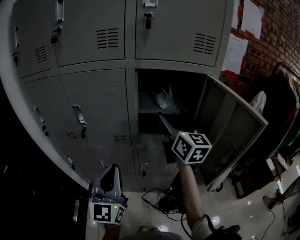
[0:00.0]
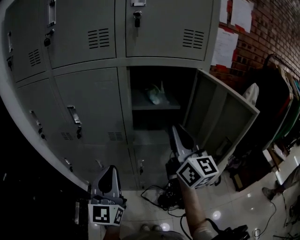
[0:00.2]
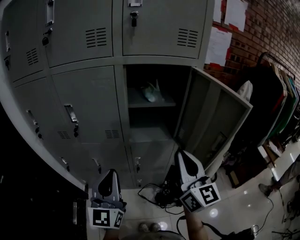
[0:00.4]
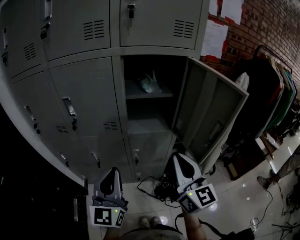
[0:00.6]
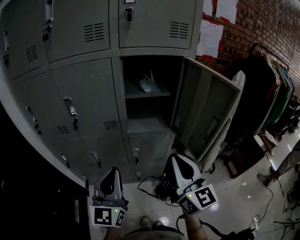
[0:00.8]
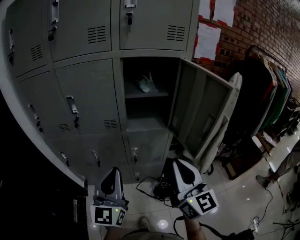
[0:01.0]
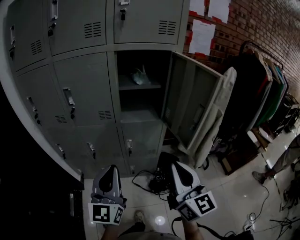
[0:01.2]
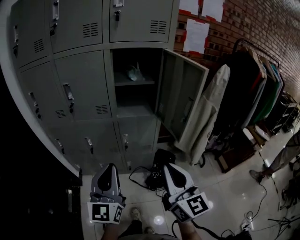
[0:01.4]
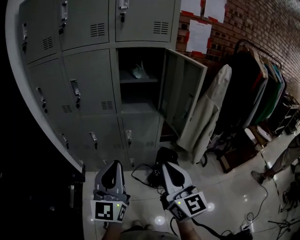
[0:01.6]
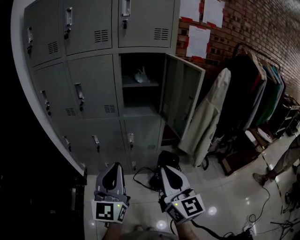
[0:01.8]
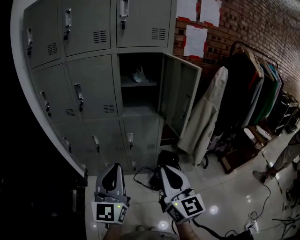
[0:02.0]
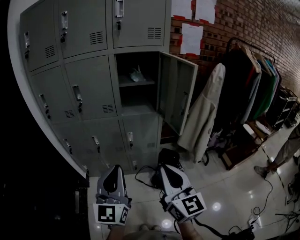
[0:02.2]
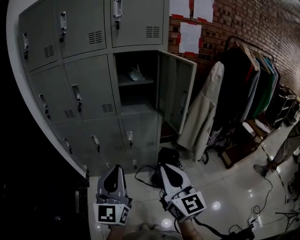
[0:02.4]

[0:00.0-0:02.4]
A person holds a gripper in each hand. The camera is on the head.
0.0 to 1.2 s: The left gripper travels backward by about 15 cm; the right gripper heads backward, covering approximately 35 cm, and closes its fingers.
1.2 to 2.4 s: Both grippers travel together backward, about 10 cm.

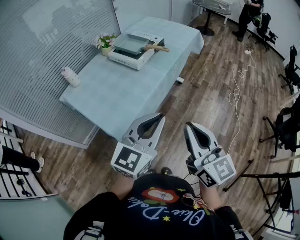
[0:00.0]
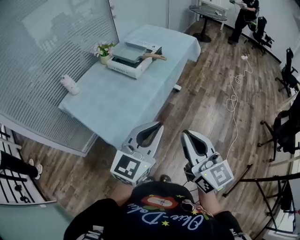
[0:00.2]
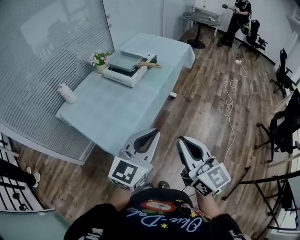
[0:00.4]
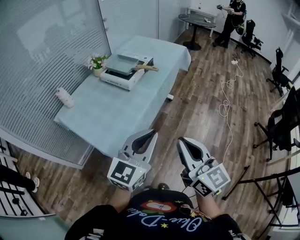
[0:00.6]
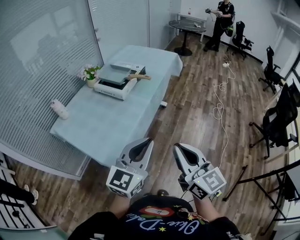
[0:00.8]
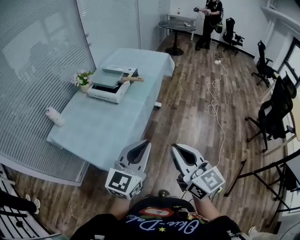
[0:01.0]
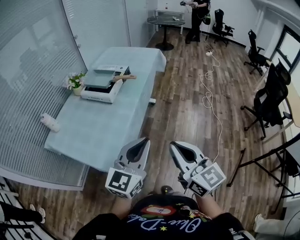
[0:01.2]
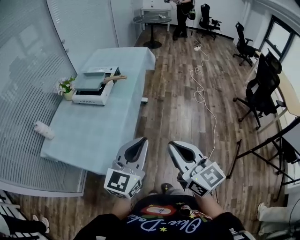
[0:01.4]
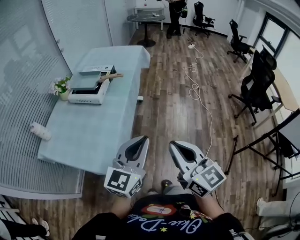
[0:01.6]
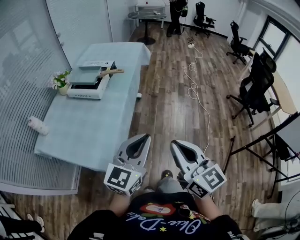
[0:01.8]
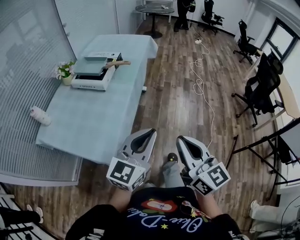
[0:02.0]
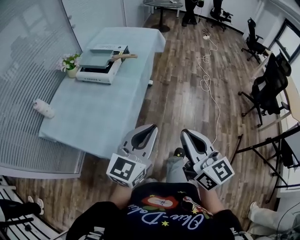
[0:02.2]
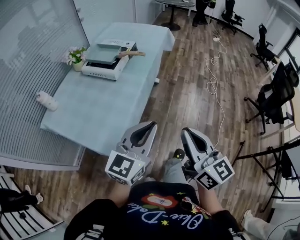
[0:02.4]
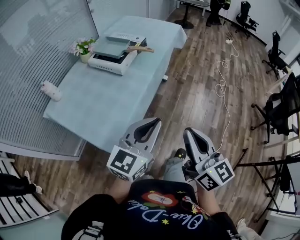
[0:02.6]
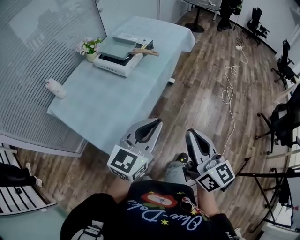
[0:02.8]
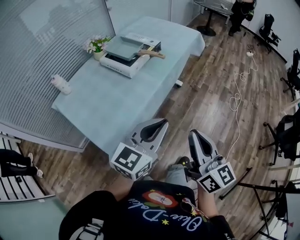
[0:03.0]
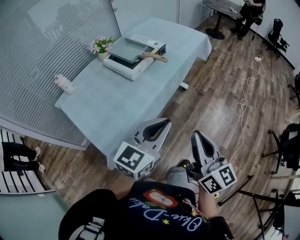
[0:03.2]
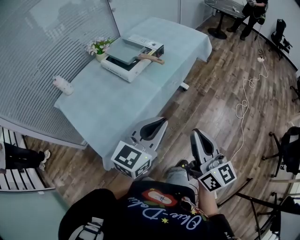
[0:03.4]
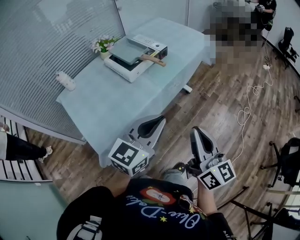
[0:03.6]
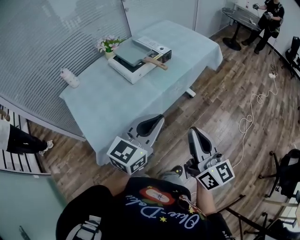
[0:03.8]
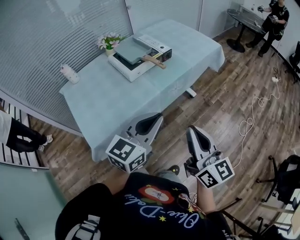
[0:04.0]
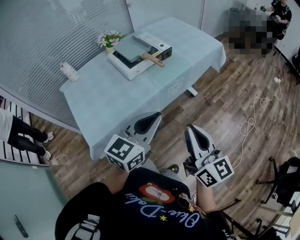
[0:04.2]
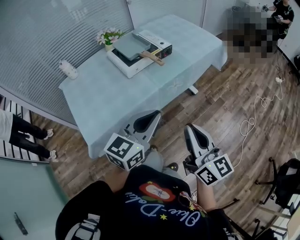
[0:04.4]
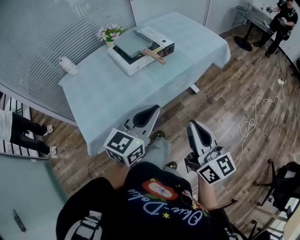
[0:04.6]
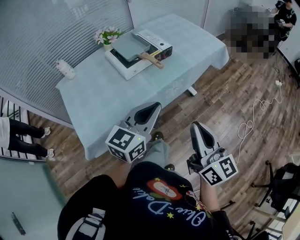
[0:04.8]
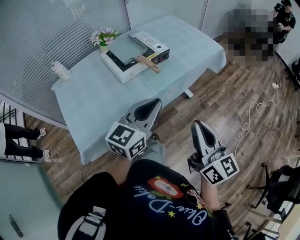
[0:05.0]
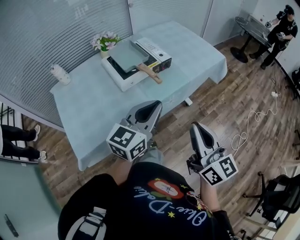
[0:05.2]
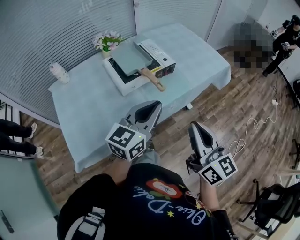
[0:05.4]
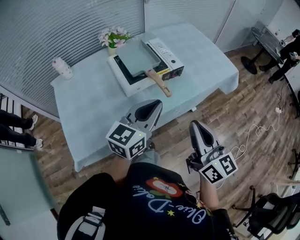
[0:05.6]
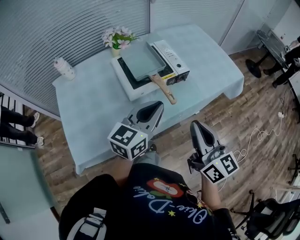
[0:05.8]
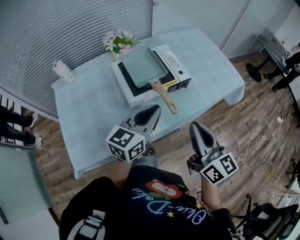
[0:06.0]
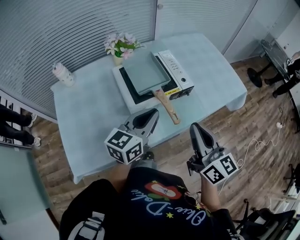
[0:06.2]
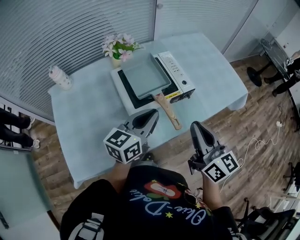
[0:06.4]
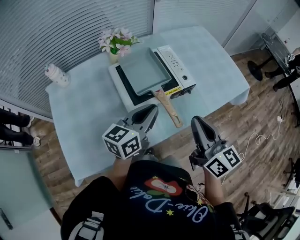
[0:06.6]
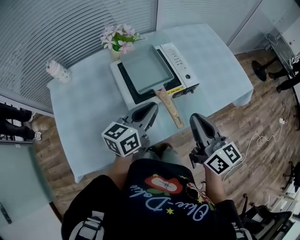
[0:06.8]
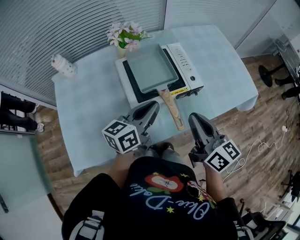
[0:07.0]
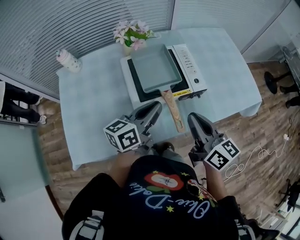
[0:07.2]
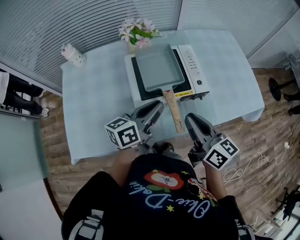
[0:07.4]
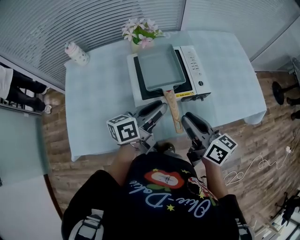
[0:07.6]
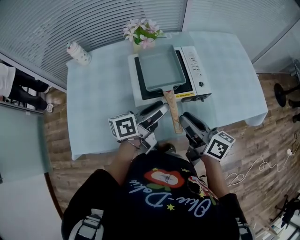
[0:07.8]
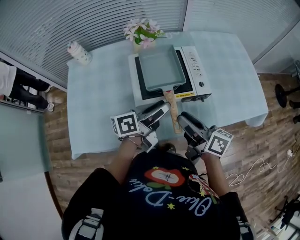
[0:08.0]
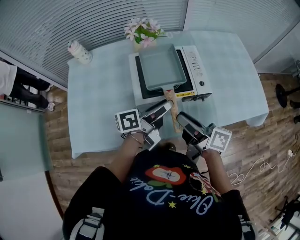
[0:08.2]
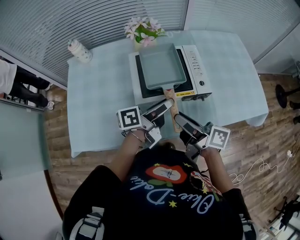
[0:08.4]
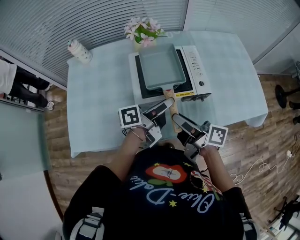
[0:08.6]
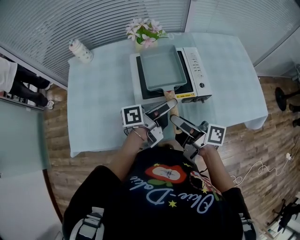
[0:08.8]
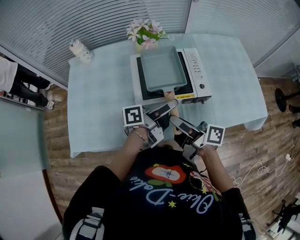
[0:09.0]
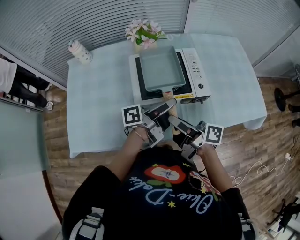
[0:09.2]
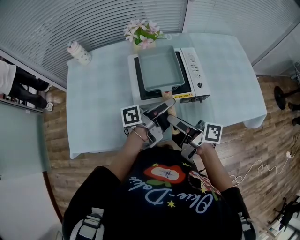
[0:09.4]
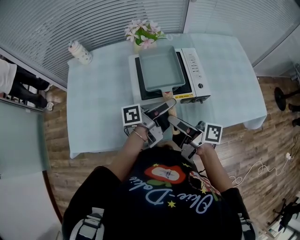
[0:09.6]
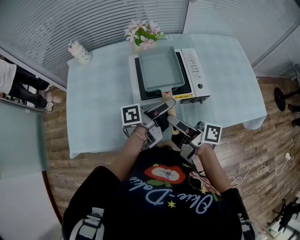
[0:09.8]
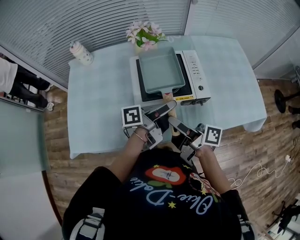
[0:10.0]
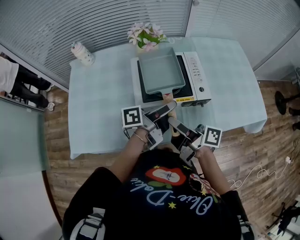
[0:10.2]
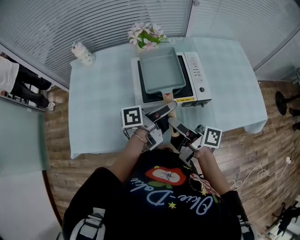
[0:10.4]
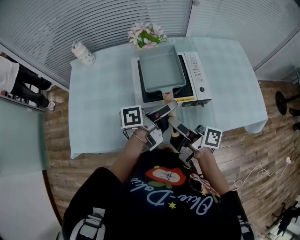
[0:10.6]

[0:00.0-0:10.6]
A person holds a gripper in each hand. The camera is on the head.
0.0 to 1.6 s: The grippers make only small movements.
1.6 to 3.0 s: The grippers both shift forward by about 10 cm. The right gripper changes its angle by some 20 degrees.
3.0 to 4.6 s: The two grippers go approximately 15 cm forward and to the right. The right gripper changes its angle by about 20 degrees; the left gripper turns by about 20 degrees.
4.6 to 6.0 s: Both grippers travel together forward, about 25 cm.
6.0 to 7.6 s: The two grippers go approximately 10 cm forward and downward. The left gripper swivels roughly 40 degrees, and opens up; the right gripper rotates some 30 degrees, and opens up.
7.6 to 9.0 s: The left gripper rotates about 30 degrees, and opens its fingers. The right gripper moves approximately 5 cm, and swivels approximately 40 degrees.
9.0 to 10.6 s: The left gripper closes up.

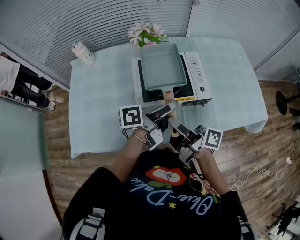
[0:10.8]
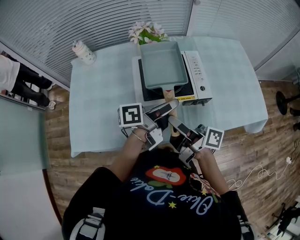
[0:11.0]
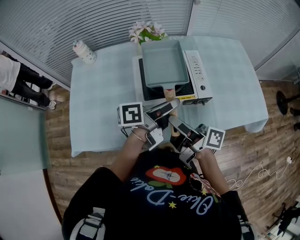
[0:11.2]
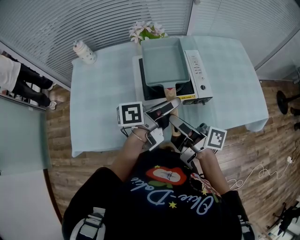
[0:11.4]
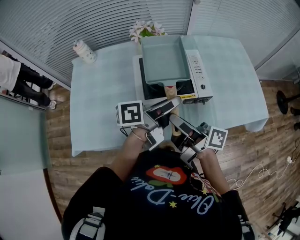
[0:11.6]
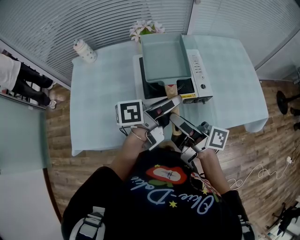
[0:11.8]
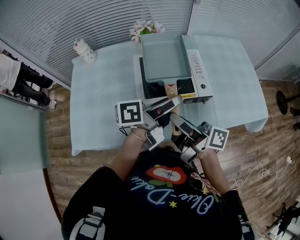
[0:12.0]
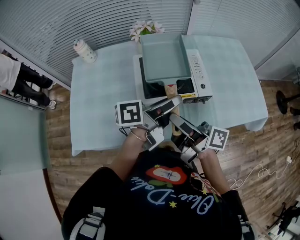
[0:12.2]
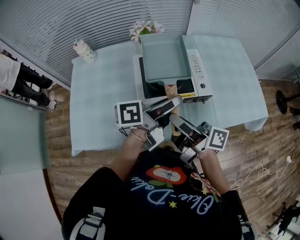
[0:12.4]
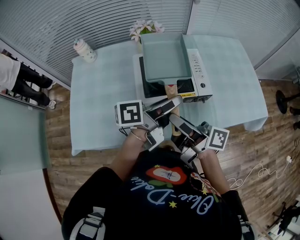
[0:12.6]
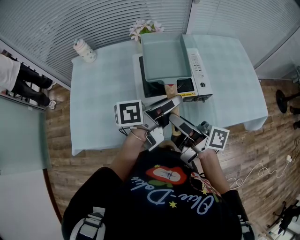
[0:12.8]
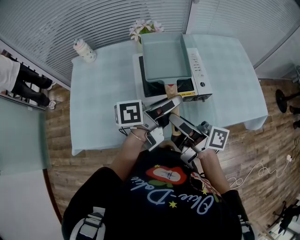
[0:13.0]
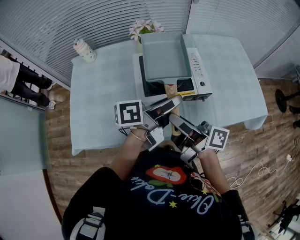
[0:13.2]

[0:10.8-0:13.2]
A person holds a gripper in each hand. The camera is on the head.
10.8 to 12.0 s: There are only small adjustments of the grippers.
12.0 to 13.2 s: Both grippers stay about where they are.

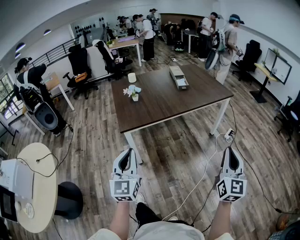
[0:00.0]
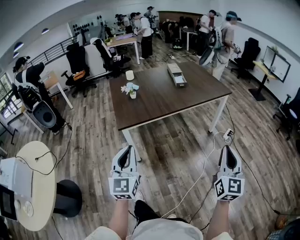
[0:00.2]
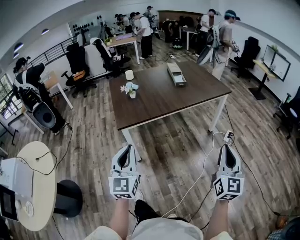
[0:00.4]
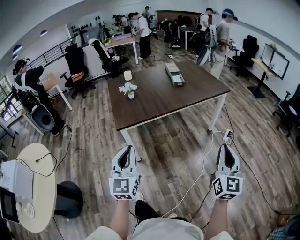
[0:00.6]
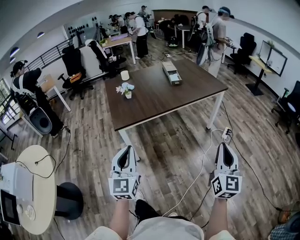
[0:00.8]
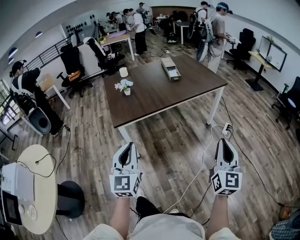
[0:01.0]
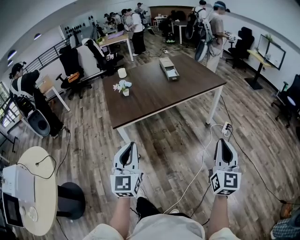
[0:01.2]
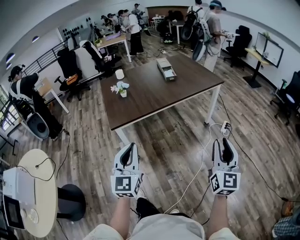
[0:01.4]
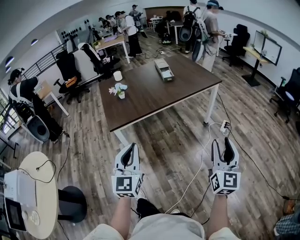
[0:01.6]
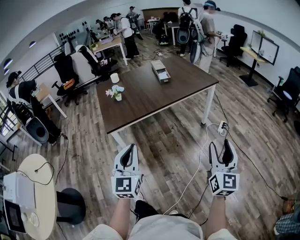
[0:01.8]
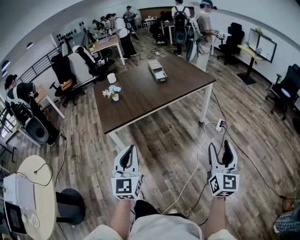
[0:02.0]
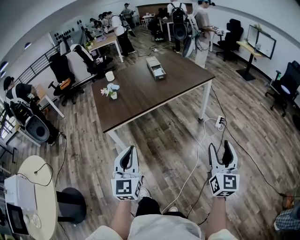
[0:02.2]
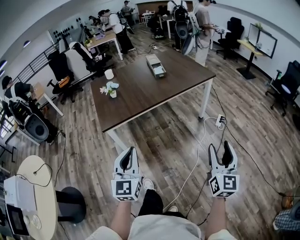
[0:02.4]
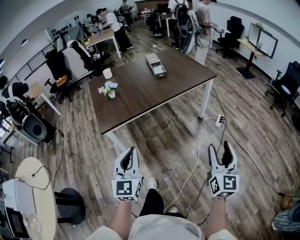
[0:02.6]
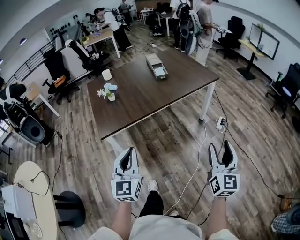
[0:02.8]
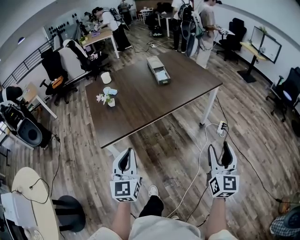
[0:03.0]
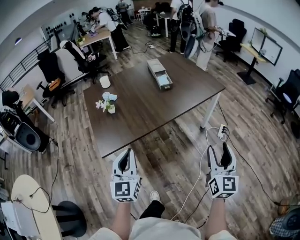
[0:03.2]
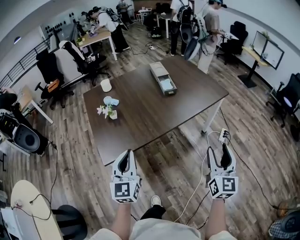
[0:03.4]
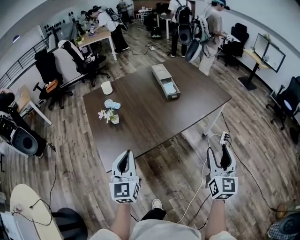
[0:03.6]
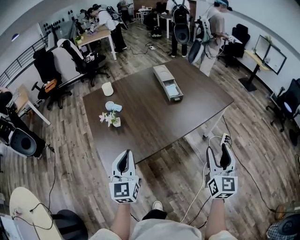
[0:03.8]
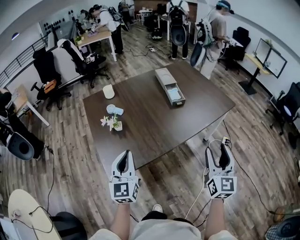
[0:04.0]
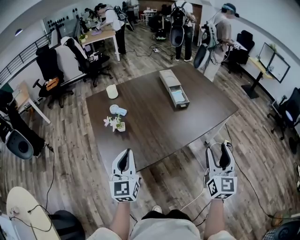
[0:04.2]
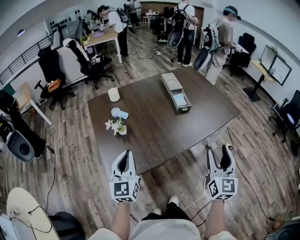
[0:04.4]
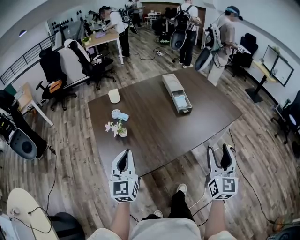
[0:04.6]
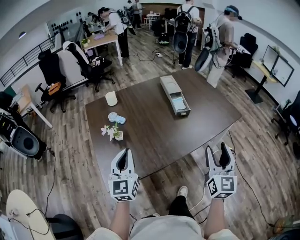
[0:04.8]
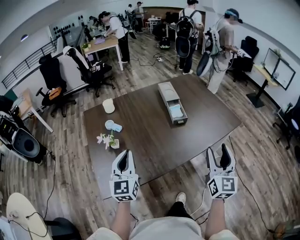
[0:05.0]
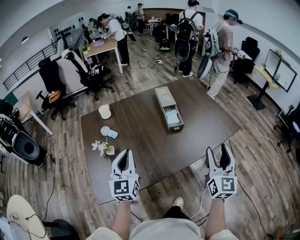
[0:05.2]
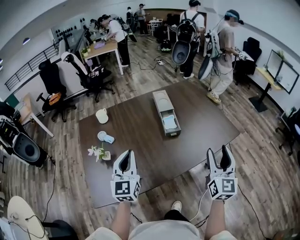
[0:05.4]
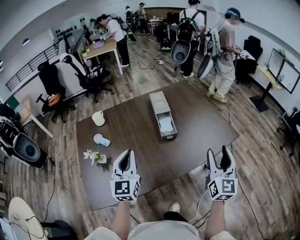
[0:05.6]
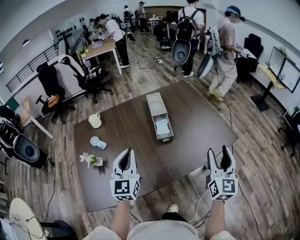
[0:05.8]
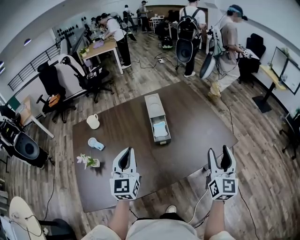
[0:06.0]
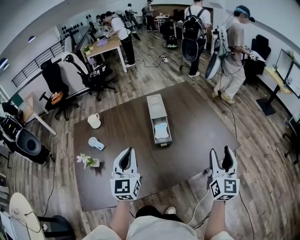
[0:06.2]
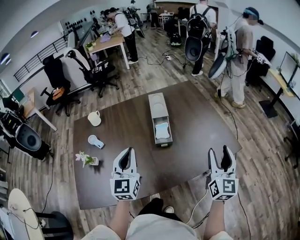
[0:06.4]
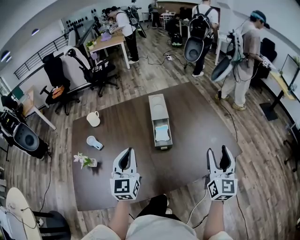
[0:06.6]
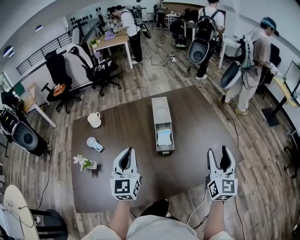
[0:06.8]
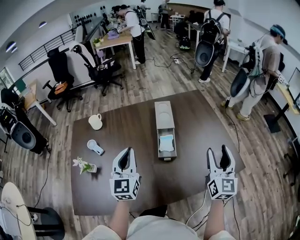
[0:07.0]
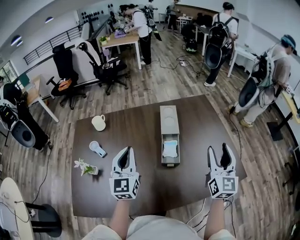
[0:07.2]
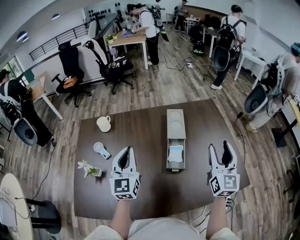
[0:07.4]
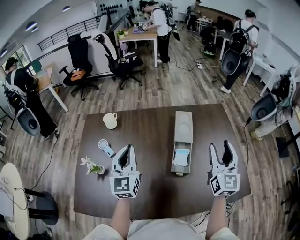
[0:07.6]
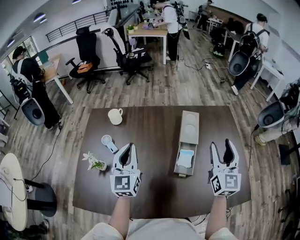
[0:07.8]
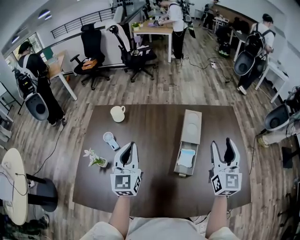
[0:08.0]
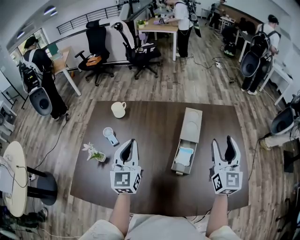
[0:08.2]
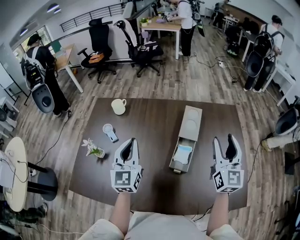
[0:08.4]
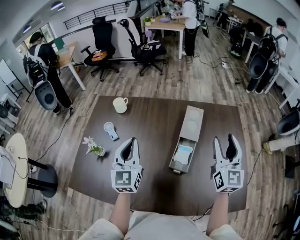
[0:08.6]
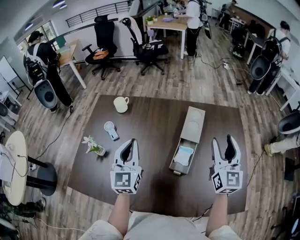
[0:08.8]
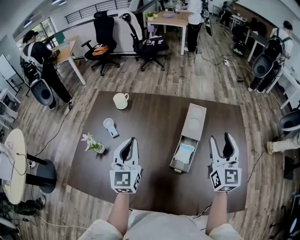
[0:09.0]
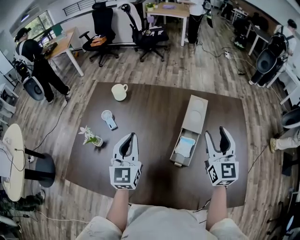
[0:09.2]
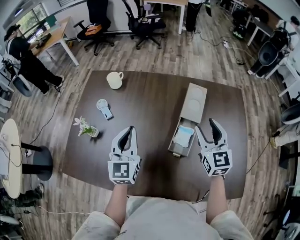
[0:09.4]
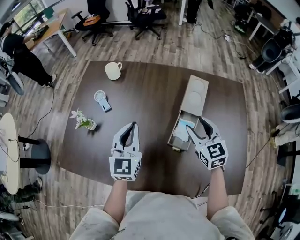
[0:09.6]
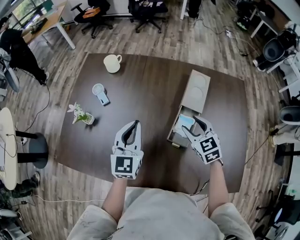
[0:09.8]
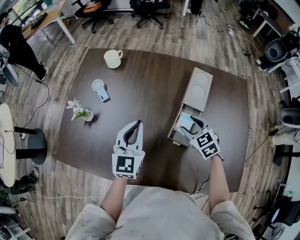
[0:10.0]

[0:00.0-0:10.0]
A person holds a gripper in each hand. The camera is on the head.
0.0 to 1.4 s: The left gripper is displaced to the right by approximately 5 cm; the right gripper opens up.
1.4 to 2.8 s: Both grippers move forward, some 10 cm. The right gripper opens up.
2.8 to 4.2 s: The two grippers go approximately 35 cm forward and to the left.
4.2 to 5.8 s: Both grippers travel together forward and to the right, some 30 cm.
5.8 to 7.2 s: The right gripper shifts roughly 20 cm forward. The left gripper heads forward, covering about 15 cm.
7.2 to 8.6 s: The right gripper is displaced forward by approximately 15 cm.
8.6 to 10.0 s: The right gripper goes approximately 30 cm downward and to the left, and angles its fingers downward, by about 50 degrees. Meanwhile the left gripper heads downward, covering approximately 10 cm.
